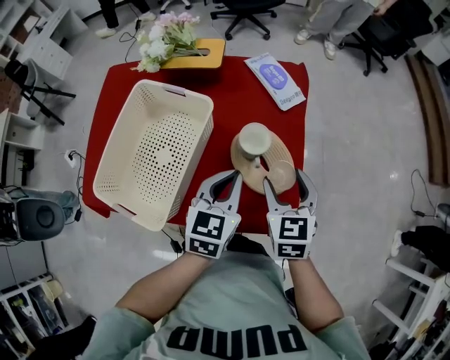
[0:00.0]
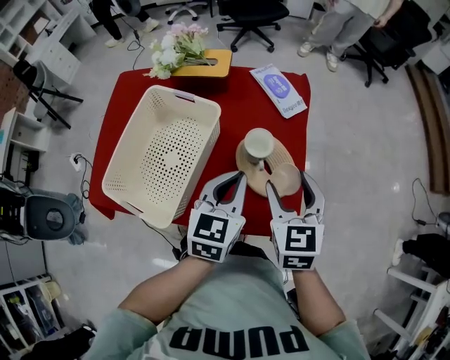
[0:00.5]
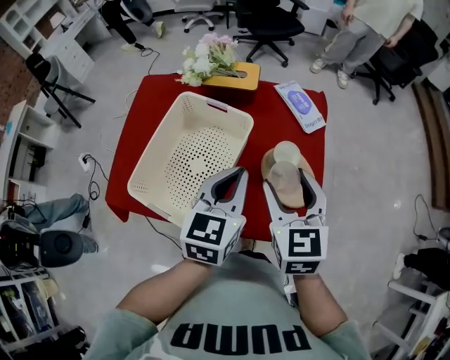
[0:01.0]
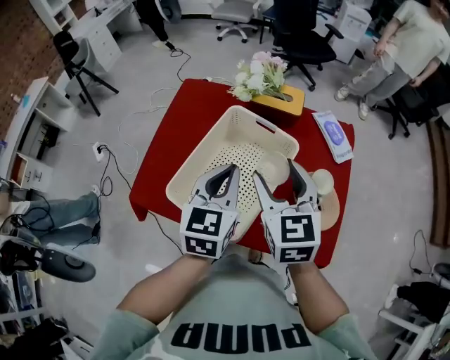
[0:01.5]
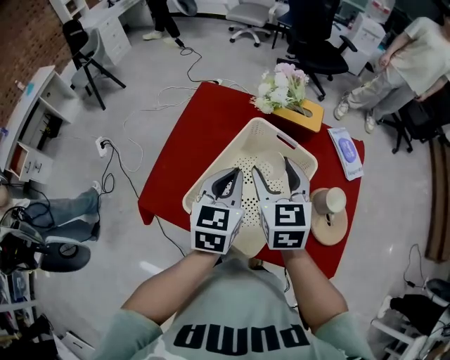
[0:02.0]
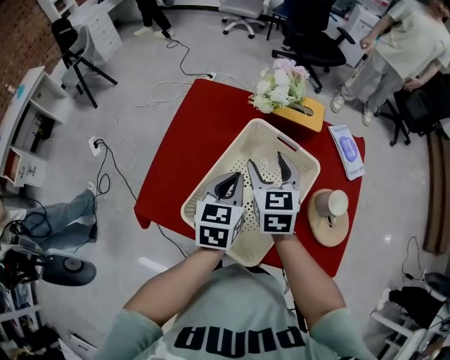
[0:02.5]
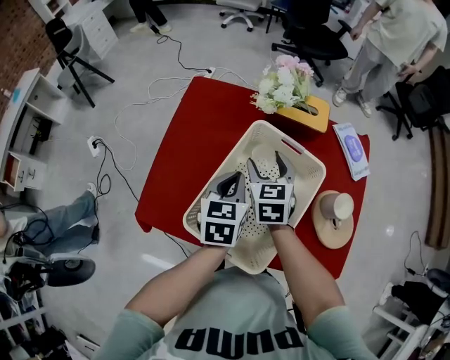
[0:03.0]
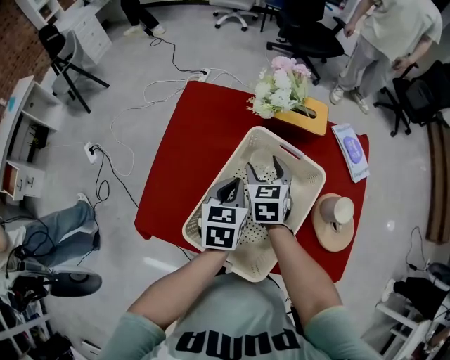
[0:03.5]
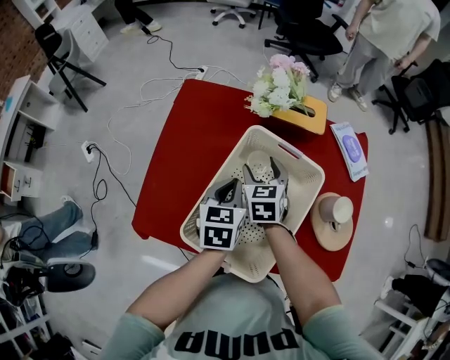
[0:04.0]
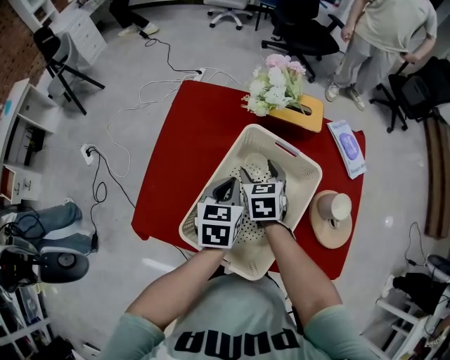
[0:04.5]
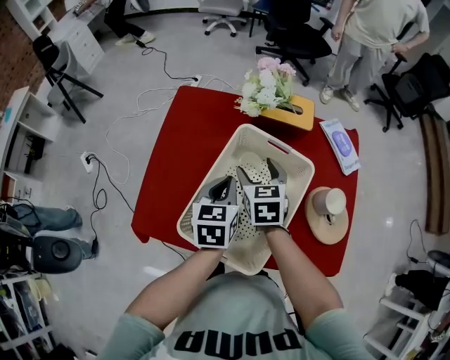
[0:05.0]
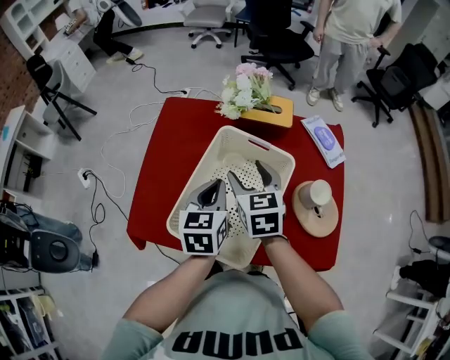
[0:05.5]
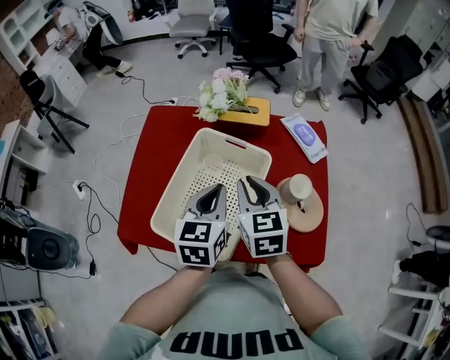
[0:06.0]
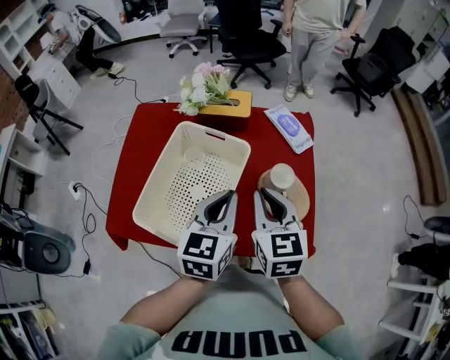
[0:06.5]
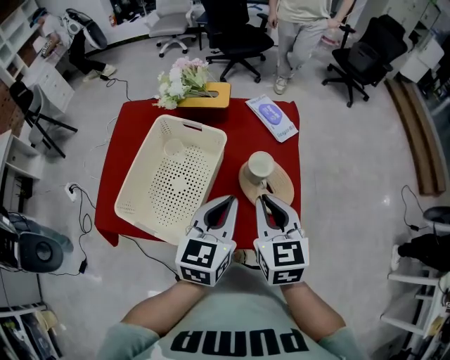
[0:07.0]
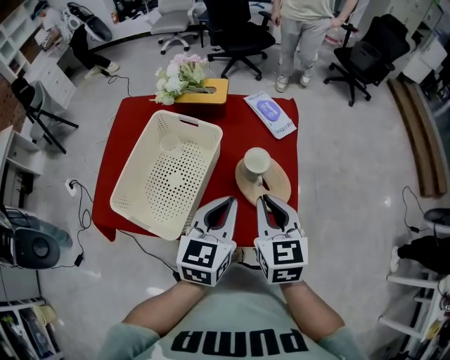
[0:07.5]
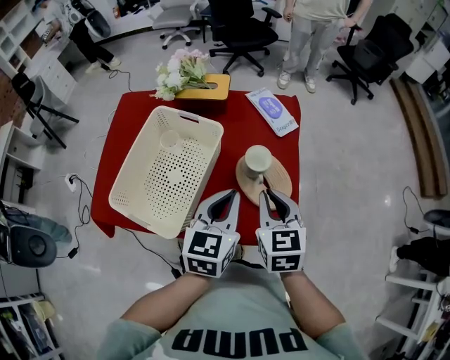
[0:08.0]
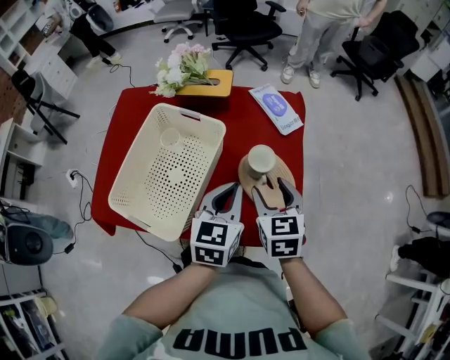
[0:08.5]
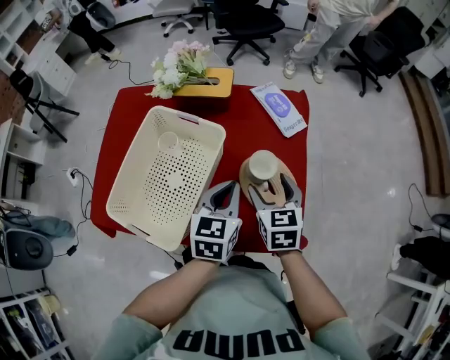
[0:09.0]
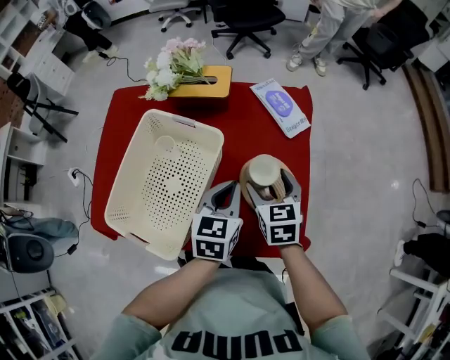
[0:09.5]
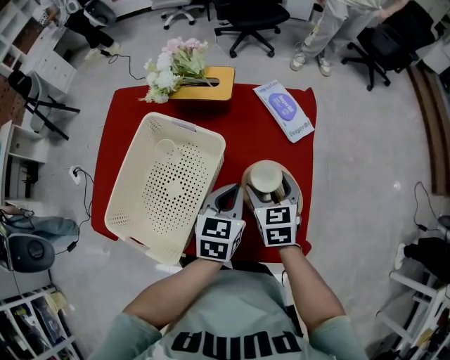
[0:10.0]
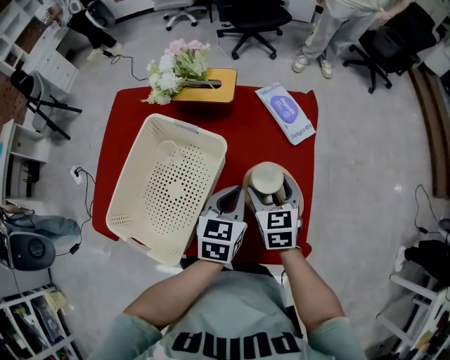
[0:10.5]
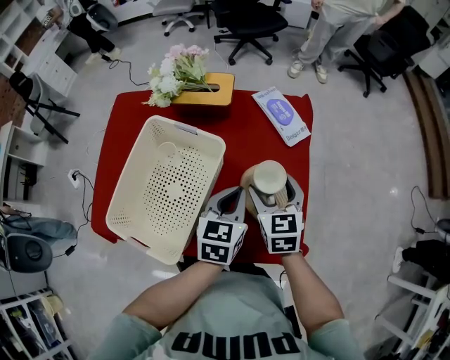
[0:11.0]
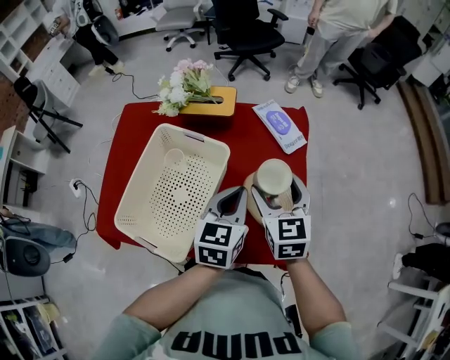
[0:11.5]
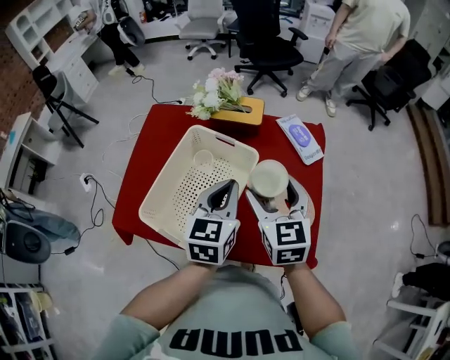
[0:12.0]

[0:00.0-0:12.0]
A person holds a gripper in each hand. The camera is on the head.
0:00.0 to 0:02.0: The two grippers go approximately 30 cm to the left. The left gripper changes its angle by roughly 20 degrees.
0:02.0 to 0:04.0: The left gripper moves downward and forward, roughly 15 cm; the right gripper heads downward and forward, covering approximately 20 cm.
0:04.0 to 0:06.0: The right gripper is displaced upward, backward and to the right by approximately 20 cm, and closes, while the left gripper moves upward, to the right and backward, some 15 cm.
0:06.0 to 0:08.0: The two grippers go approximately 20 cm to the right.
0:08.0 to 0:10.0: The right gripper travels forward and downward by roughly 15 cm, and opens its fingers. Meanwhile the left gripper goes about 15 cm downward and forward.
0:10.0 to 0:12.0: Both grippers move upward and to the left, some 20 cm.

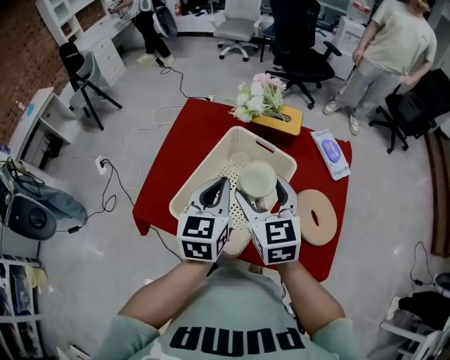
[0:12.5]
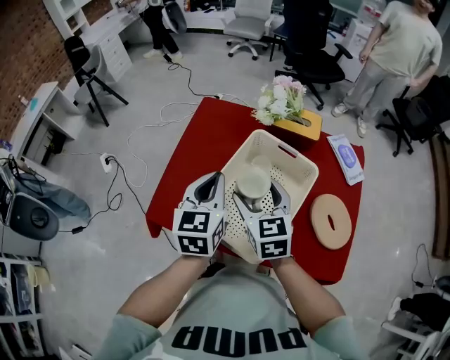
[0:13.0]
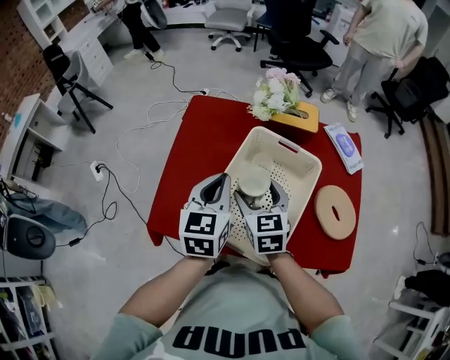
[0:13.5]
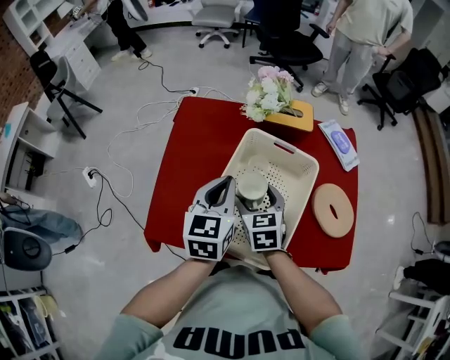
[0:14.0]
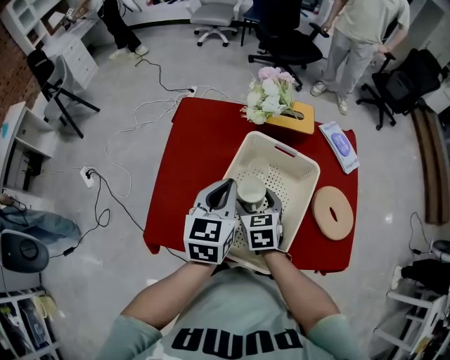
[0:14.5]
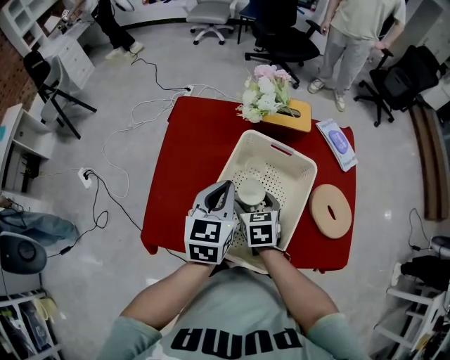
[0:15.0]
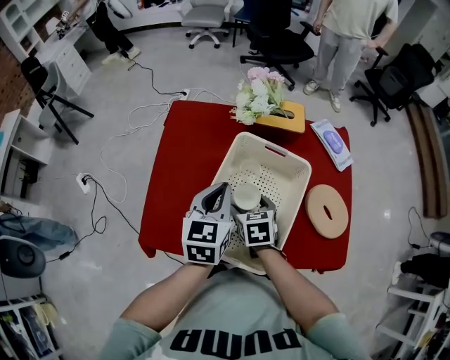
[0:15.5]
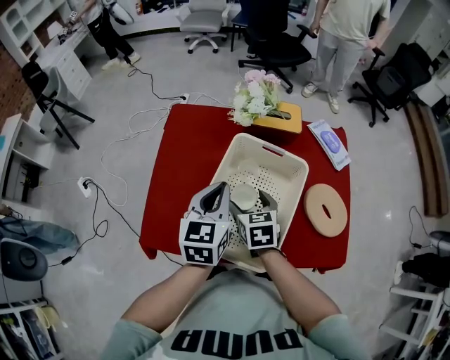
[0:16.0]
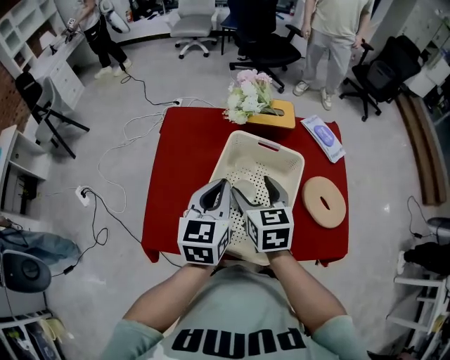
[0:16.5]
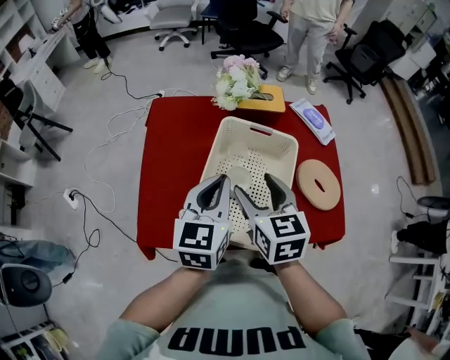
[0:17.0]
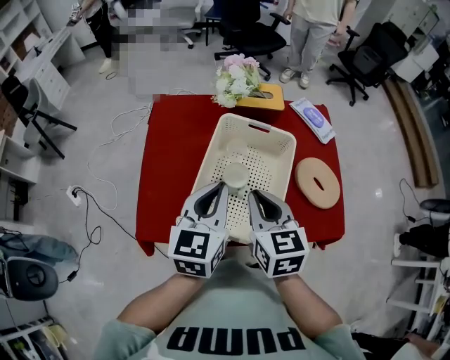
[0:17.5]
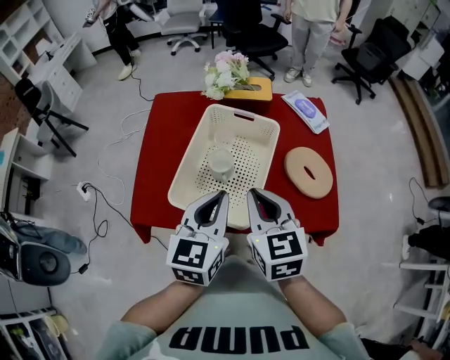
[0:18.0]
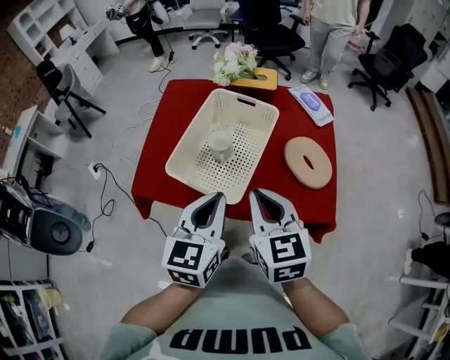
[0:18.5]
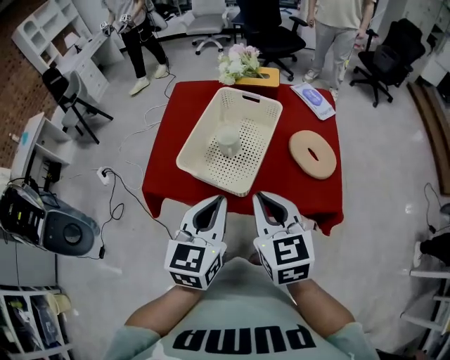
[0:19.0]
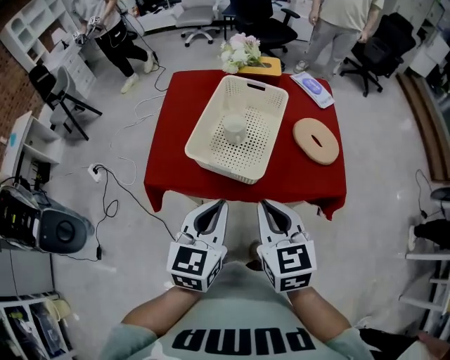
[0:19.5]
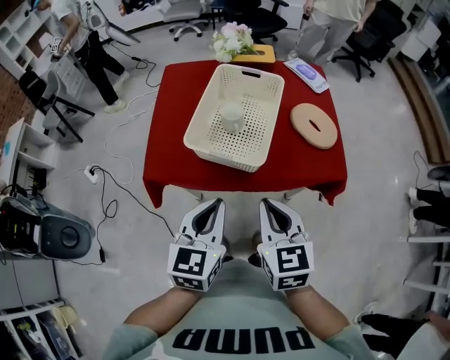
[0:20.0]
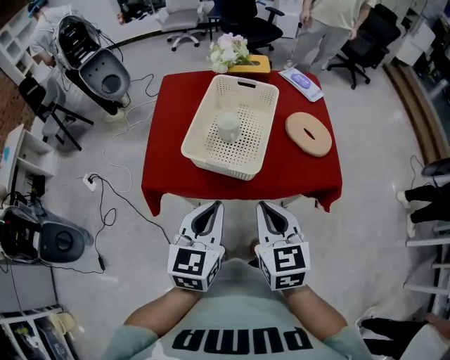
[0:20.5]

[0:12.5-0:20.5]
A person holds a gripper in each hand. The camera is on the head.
0:12.5 to 0:14.5: The right gripper heads downward and to the left, covering approximately 20 cm, and turns by approximately 30 degrees. Meanwhile the left gripper moves to the left and forward, approximately 10 cm.
0:14.5 to 0:16.5: The right gripper goes roughly 10 cm upward.
0:16.5 to 0:18.5: The grippers both shift backward and to the right by some 25 cm. The right gripper closes its fingers.
0:18.5 to 0:20.5: The two grippers go approximately 10 cm backward and to the left.

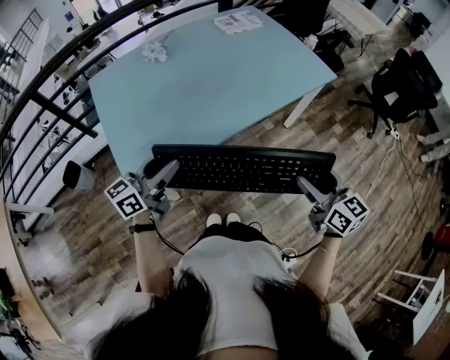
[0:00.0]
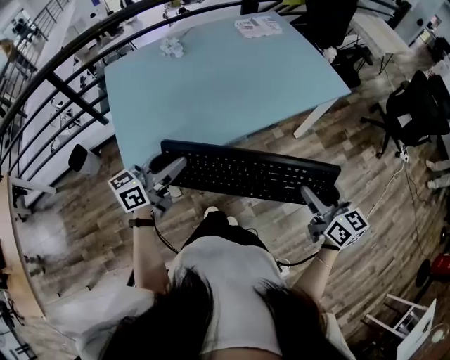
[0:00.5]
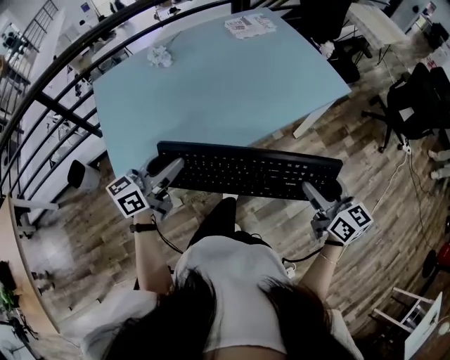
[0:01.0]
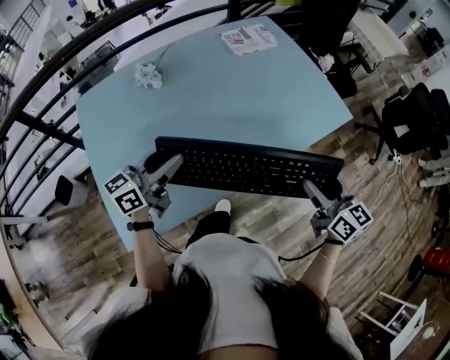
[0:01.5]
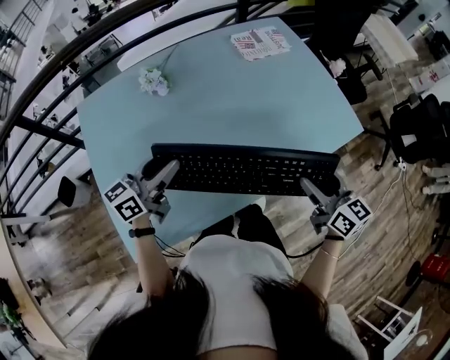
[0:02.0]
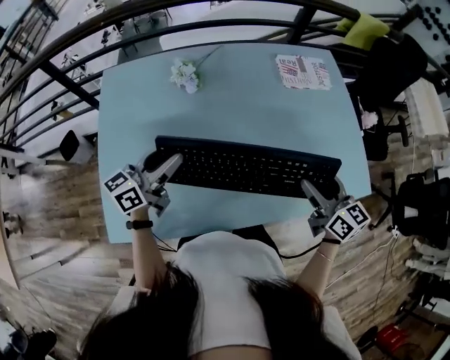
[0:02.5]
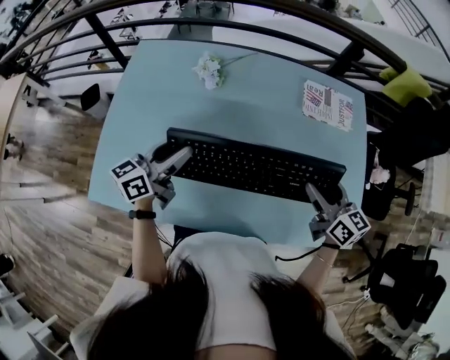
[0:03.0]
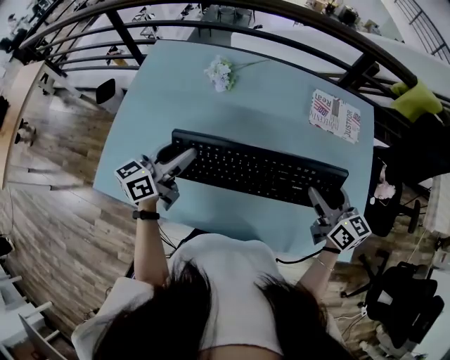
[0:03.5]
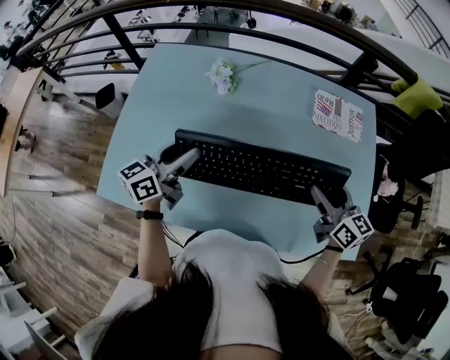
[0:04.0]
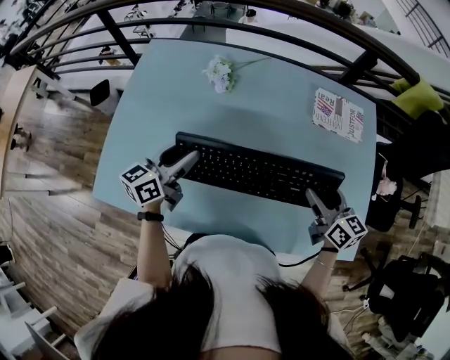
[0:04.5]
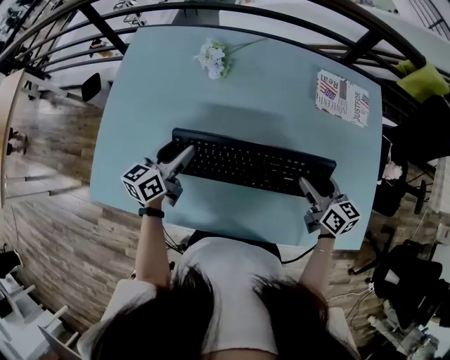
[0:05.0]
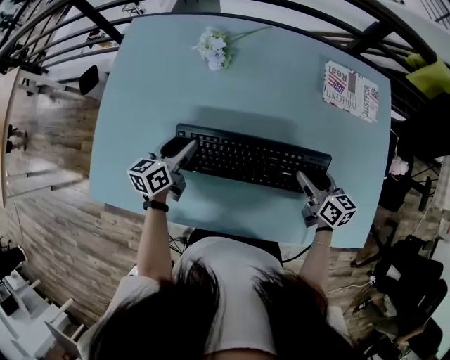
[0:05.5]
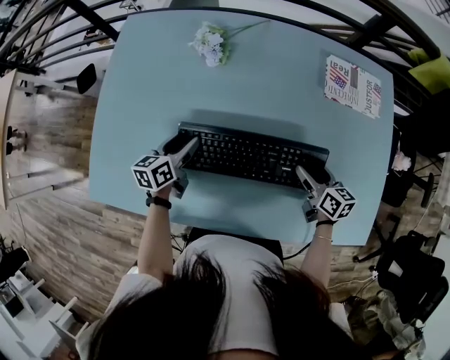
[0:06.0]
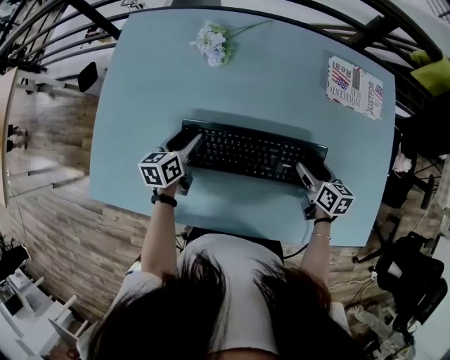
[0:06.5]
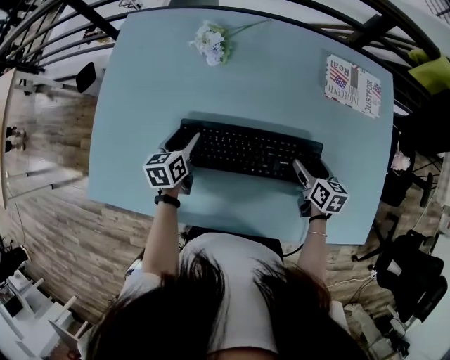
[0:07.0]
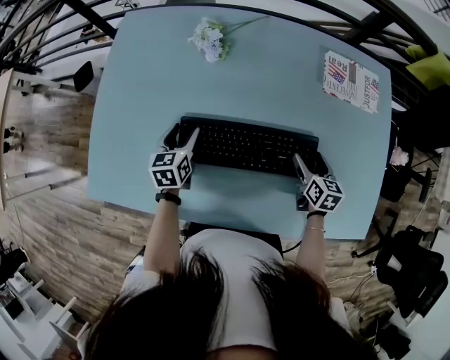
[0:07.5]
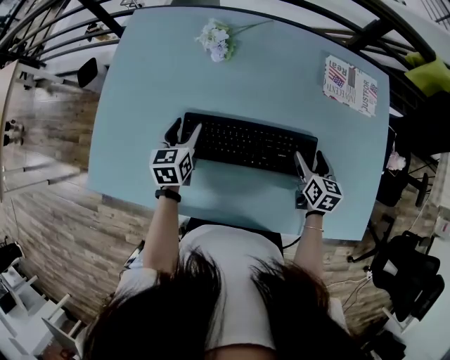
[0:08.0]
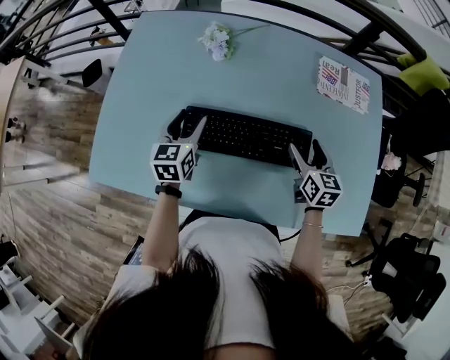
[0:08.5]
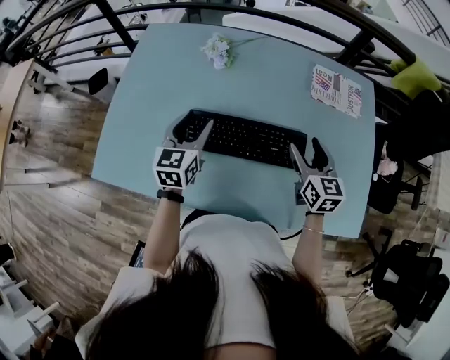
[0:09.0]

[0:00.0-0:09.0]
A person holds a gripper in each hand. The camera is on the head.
0:00.0 to 0:02.0: Both grippers move forward, some 30 cm.
0:02.0 to 0:04.5: The right gripper shifts by roughly 25 cm, and turns by about 30 degrees. Meanwhile the left gripper ends up about 10 cm from where it was, and swivels approximately 40 degrees.
0:04.5 to 0:07.0: The two grippers go some 20 cm downward. The left gripper tips its fingers downward by approximately 30 degrees. Meanwhile the right gripper rotates about 30 degrees.
0:07.0 to 0:09.0: Both grippers travel together upward, roughly 15 cm. The left gripper turns by some 30 degrees, while the right gripper changes its angle by about 30 degrees.
